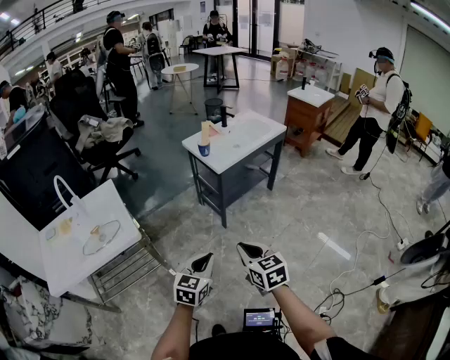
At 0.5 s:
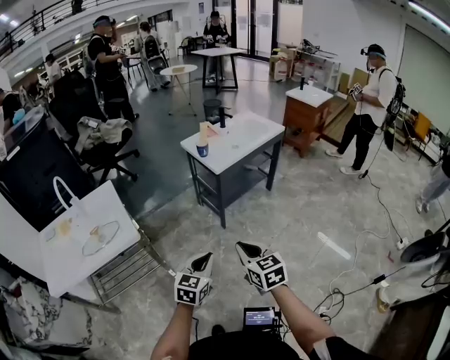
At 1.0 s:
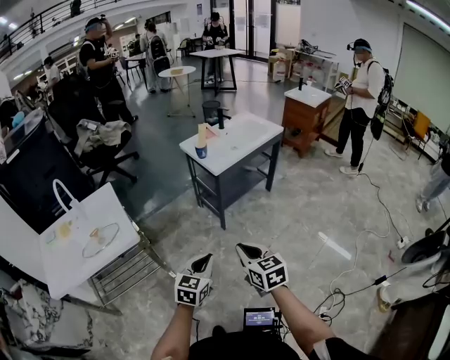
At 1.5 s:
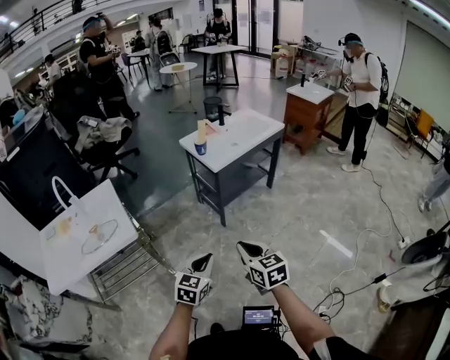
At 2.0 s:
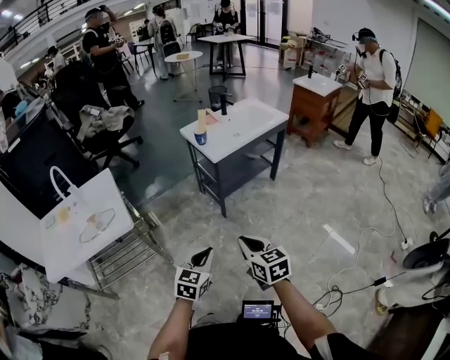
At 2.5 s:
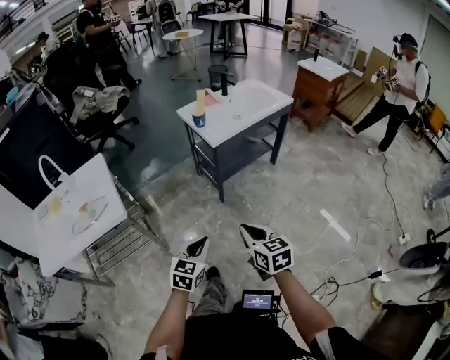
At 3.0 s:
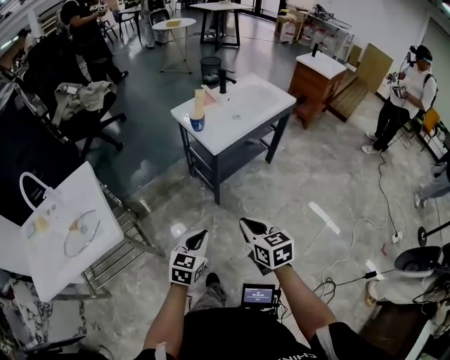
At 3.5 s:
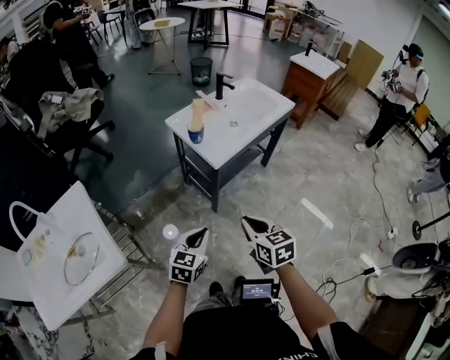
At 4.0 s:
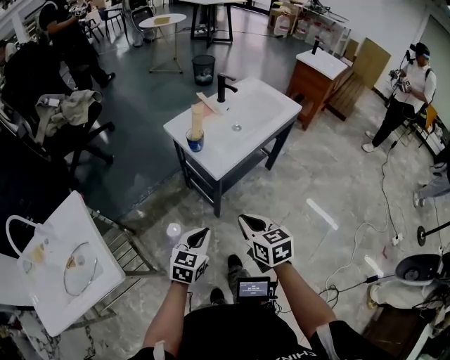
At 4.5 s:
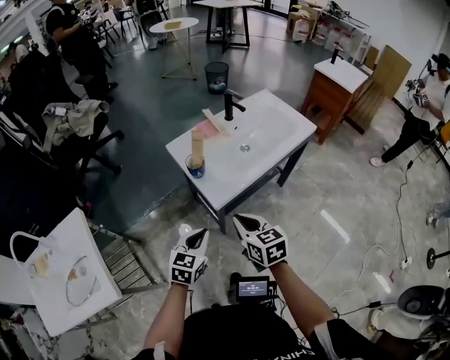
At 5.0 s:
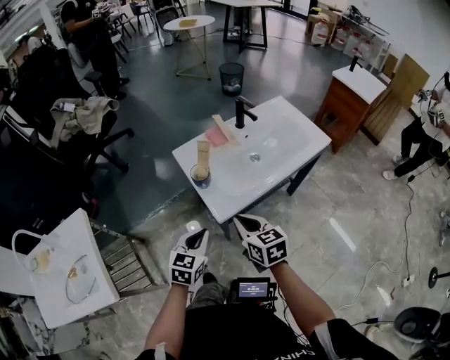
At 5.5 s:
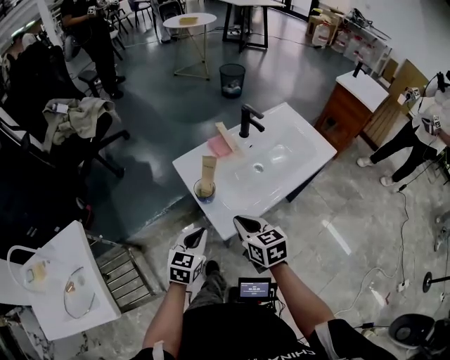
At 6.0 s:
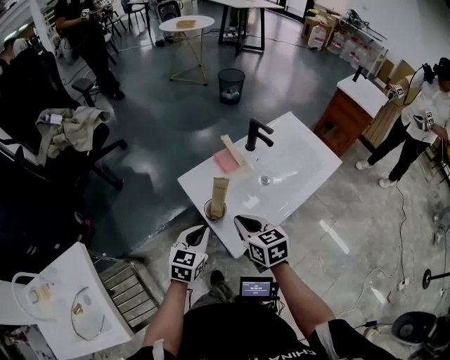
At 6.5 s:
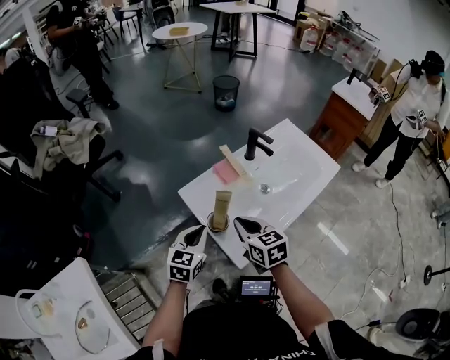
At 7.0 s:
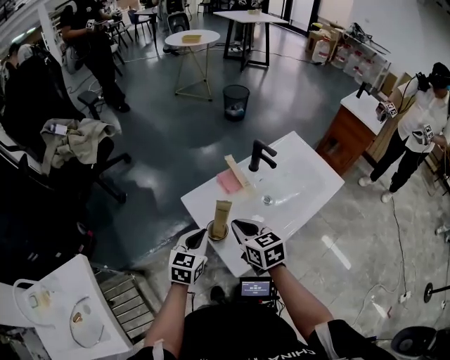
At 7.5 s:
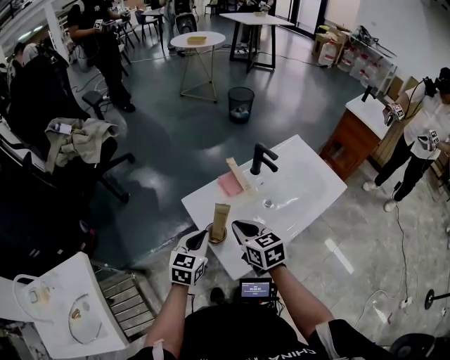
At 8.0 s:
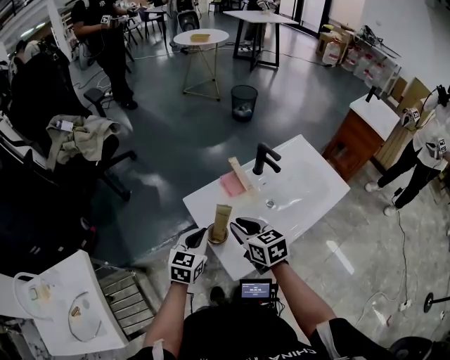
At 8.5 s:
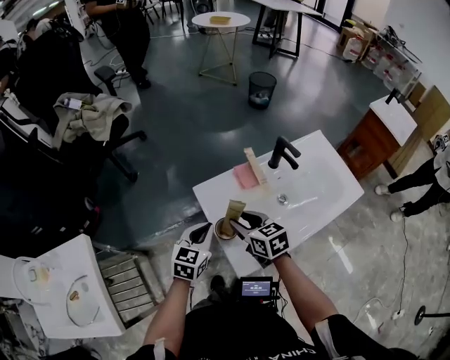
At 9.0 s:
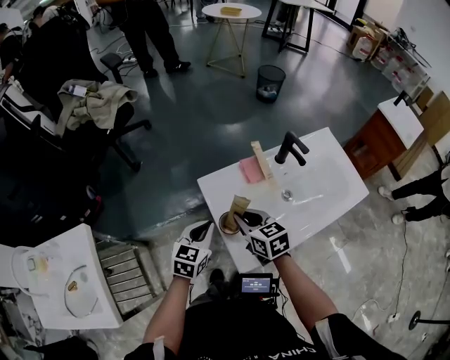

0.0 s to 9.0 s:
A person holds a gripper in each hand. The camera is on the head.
0.0 to 2.0 s: Both grippers travel together to the right, approximately 5 cm.
2.0 to 4.5 s: Both grippers are carried forward, approximately 50 cm.
4.5 to 7.0 s: The two grippers go approximately 25 cm forward.
7.0 to 9.0 s: The right gripper shifts by approximately 5 cm, and opens, then closes once more.

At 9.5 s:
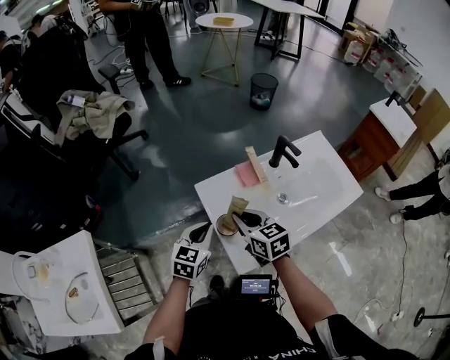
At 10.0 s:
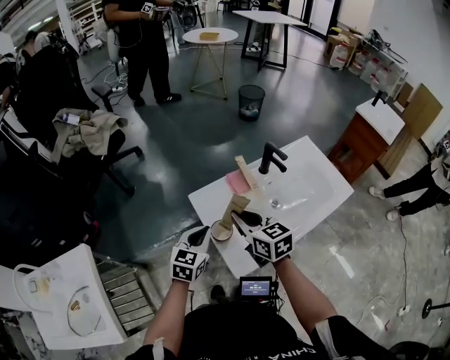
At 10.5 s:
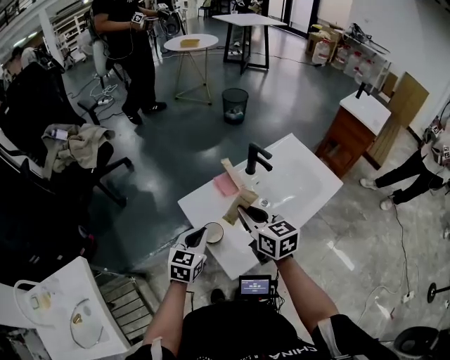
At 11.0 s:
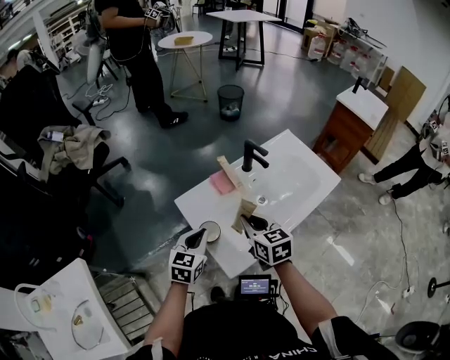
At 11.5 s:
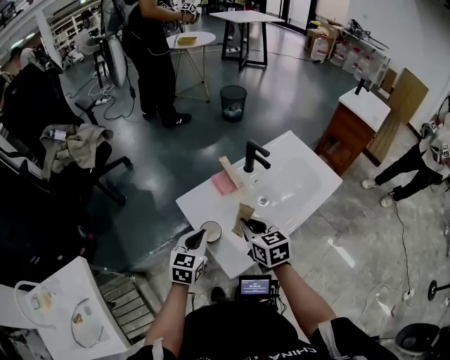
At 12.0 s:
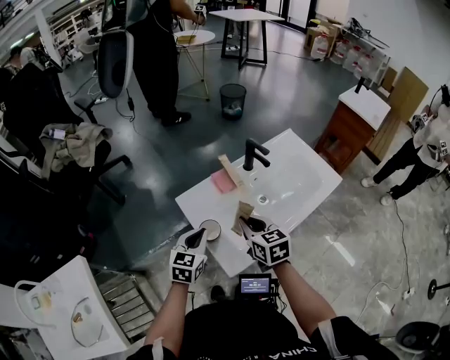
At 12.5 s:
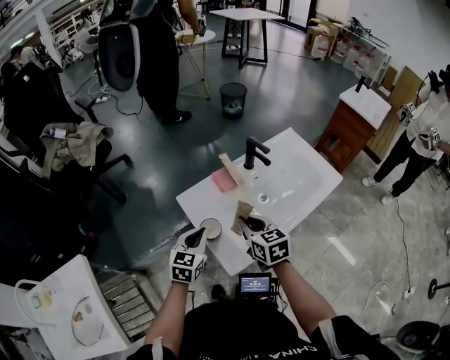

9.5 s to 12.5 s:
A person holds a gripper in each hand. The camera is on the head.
9.5 to 11.0 s: The right gripper heads to the right, covering approximately 10 cm.
11.0 to 12.5 s: The grippers stay close to where they were, moving slightly.

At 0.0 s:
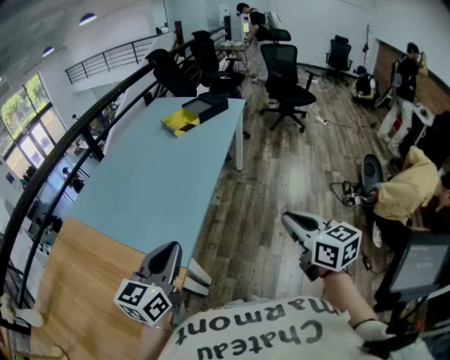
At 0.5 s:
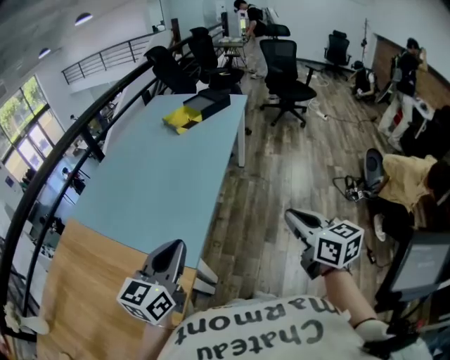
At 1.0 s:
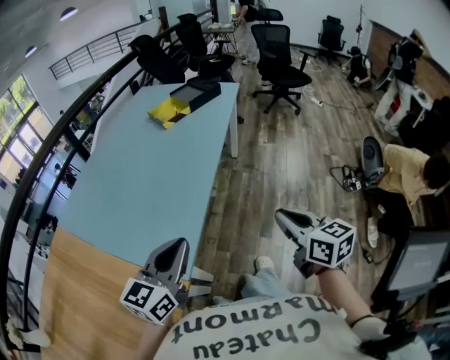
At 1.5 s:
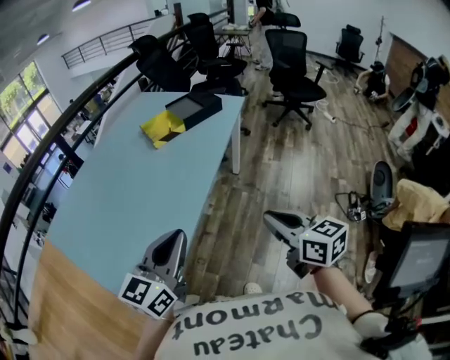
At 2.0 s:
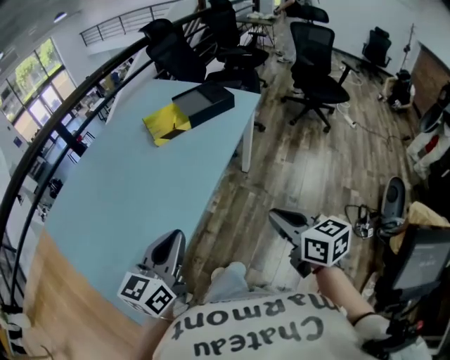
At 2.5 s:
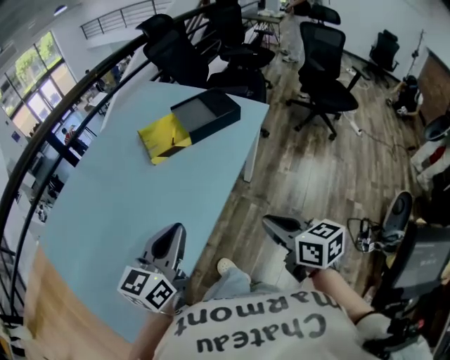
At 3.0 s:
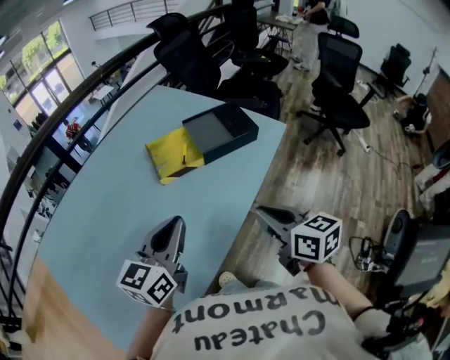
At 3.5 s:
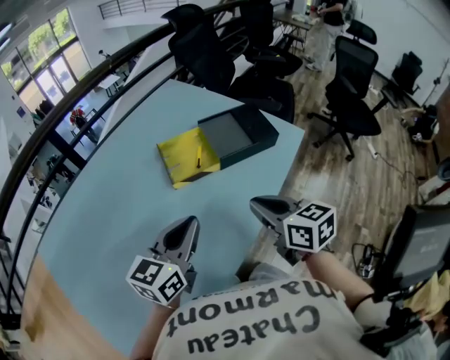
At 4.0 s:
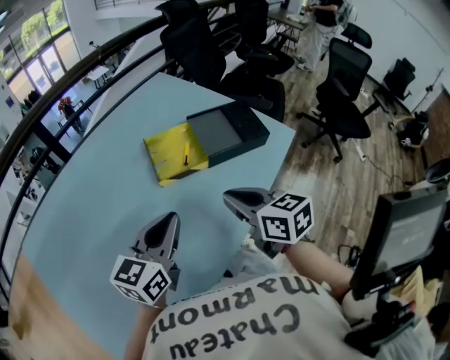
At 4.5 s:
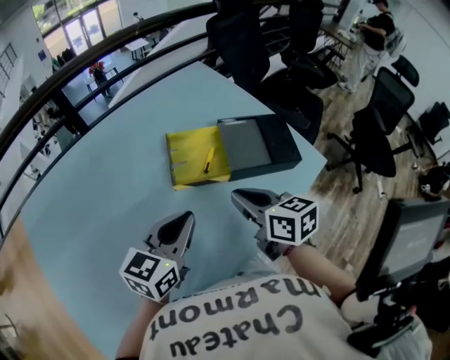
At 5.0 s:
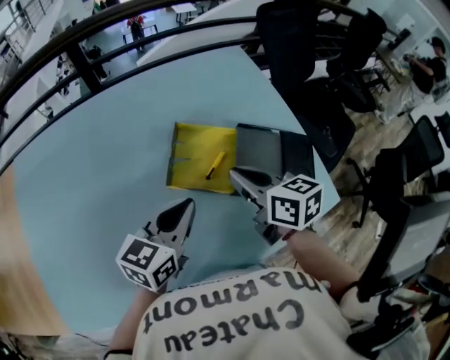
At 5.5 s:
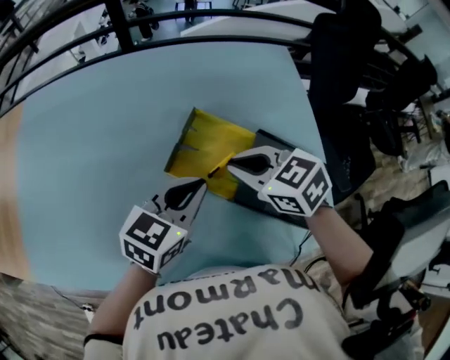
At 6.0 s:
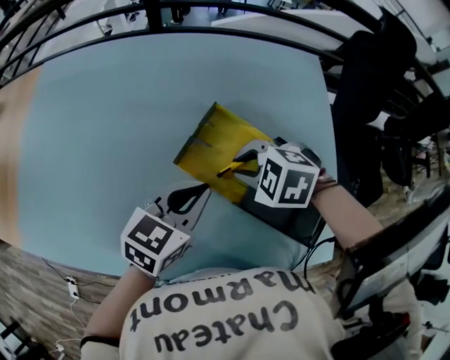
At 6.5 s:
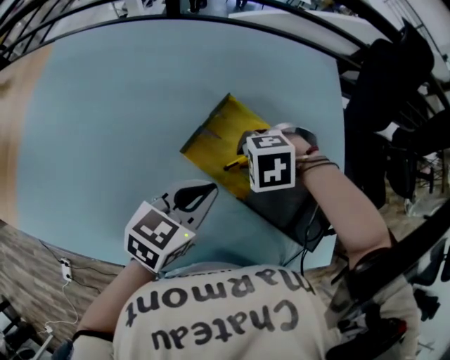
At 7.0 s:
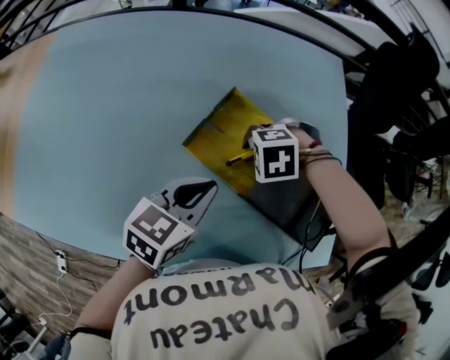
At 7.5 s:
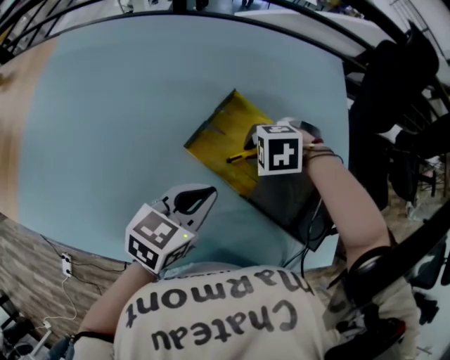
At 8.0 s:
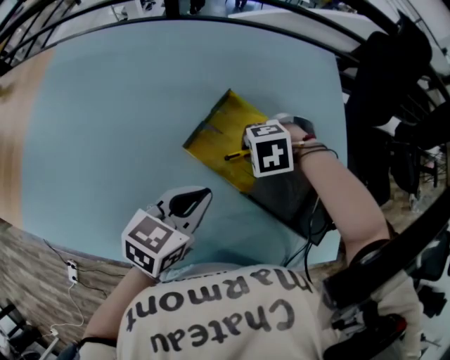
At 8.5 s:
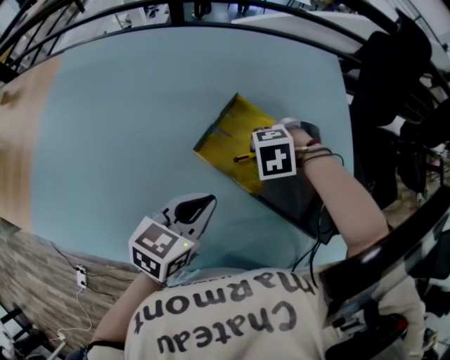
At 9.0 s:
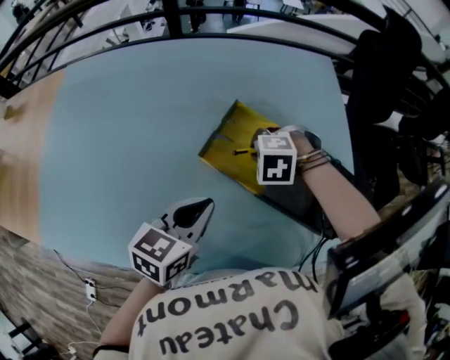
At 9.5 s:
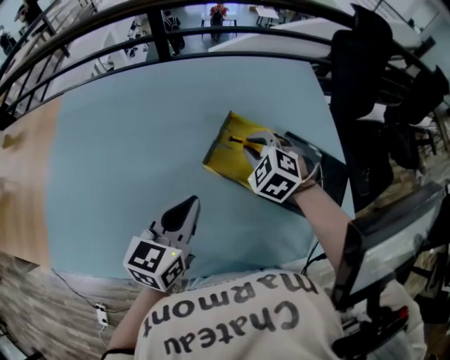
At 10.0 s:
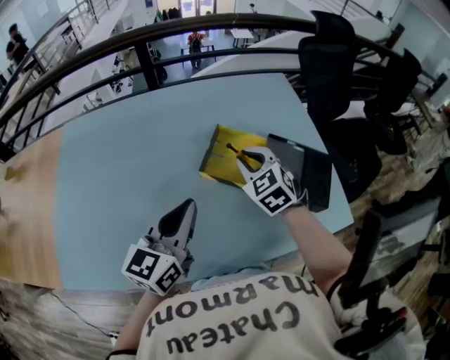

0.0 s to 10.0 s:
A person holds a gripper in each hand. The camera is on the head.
0.0 to 2.0 s: The right gripper travels forward by approximately 35 cm. The left gripper shifts about 35 cm forward and to the right.
2.0 to 4.0 s: The grippers both shift forward by about 35 cm.
4.0 to 6.0 s: The right gripper moves approximately 25 cm, and tips its fingers downward by roughly 40 degrees, while the left gripper shifts by some 20 cm, and changes its angle by about 40 degrees.
6.0 to 8.0 s: The right gripper travels downward by about 5 cm, and changes its angle by roughly 30 degrees.
8.0 to 10.0 s: Both grippers move upward, approximately 15 cm. The right gripper points its fingers roughly 50 degrees further upward; the left gripper swivels approximately 30 degrees.

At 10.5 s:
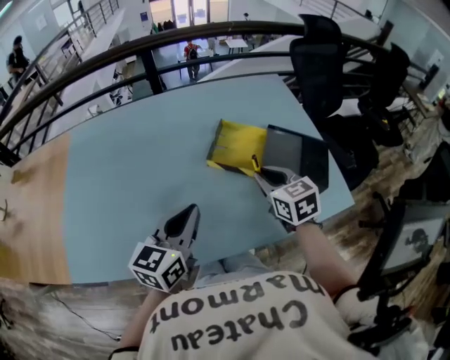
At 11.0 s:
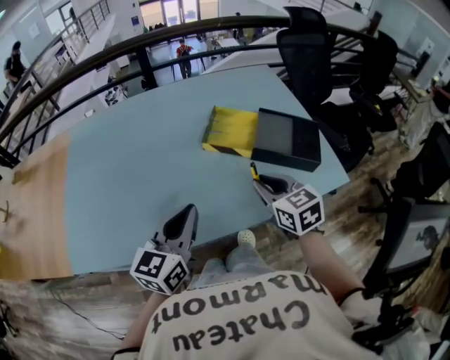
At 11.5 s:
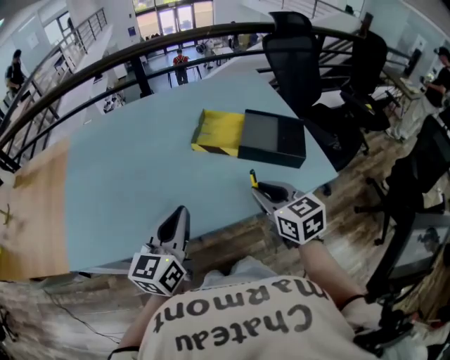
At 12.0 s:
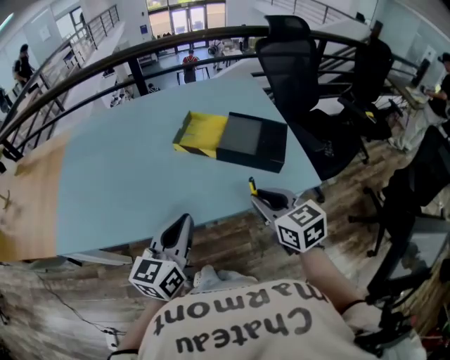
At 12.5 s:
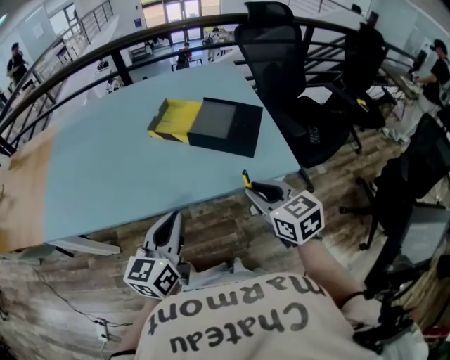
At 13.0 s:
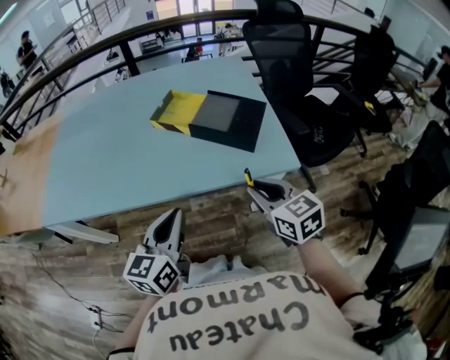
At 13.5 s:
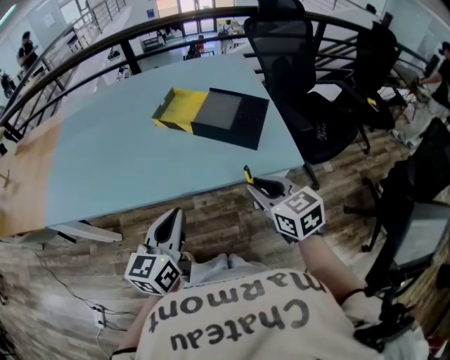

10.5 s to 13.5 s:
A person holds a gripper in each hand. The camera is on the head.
10.5 to 12.0 s: Both grippers travel together backward and to the right, roughly 20 cm.
12.0 to 13.5 s: The left gripper shifts roughly 10 cm to the right and backward, while the right gripper goes approximately 10 cm to the right.

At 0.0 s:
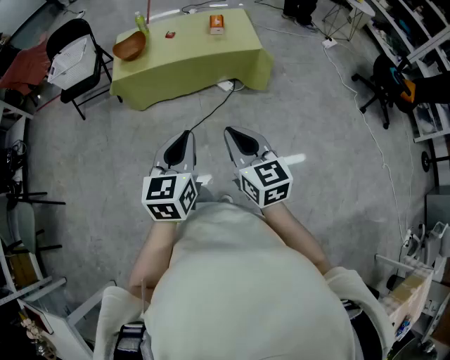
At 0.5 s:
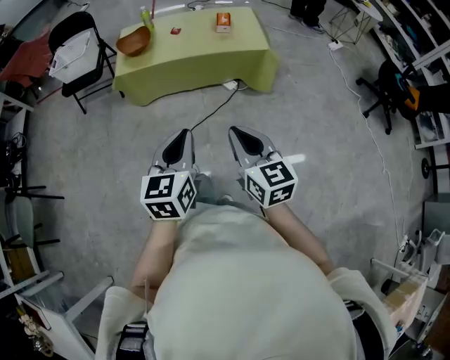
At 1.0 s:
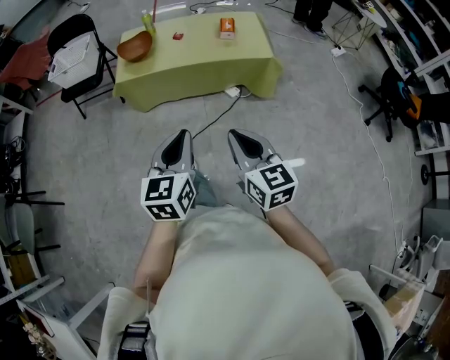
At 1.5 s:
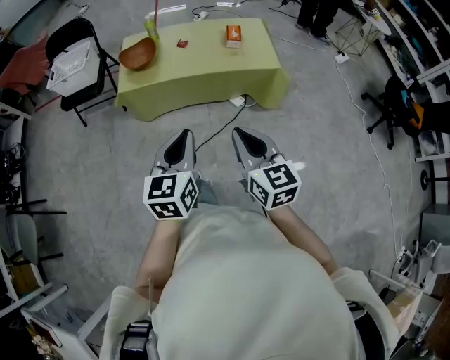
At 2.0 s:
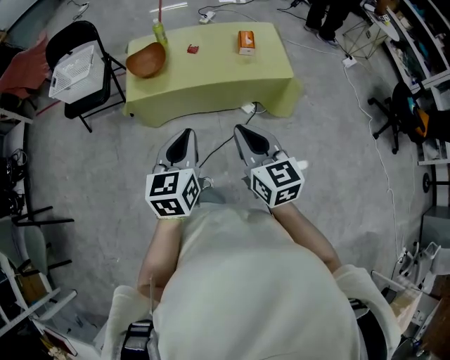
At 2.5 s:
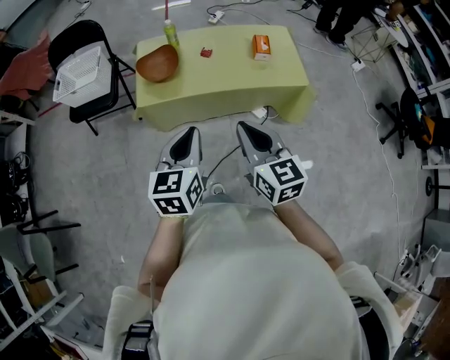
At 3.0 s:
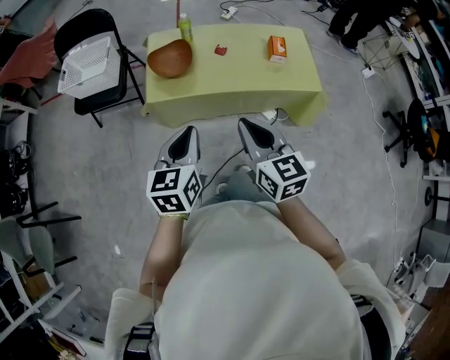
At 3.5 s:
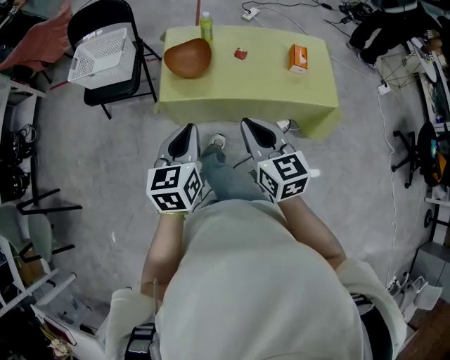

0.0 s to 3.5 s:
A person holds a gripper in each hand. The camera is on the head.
0.0 to 2.0 s: The left gripper travels forward and to the left by about 30 cm. Meanwhile the right gripper travels forward by approximately 25 cm.
2.0 to 3.5 s: Both grippers travel together forward and to the left, some 25 cm.
